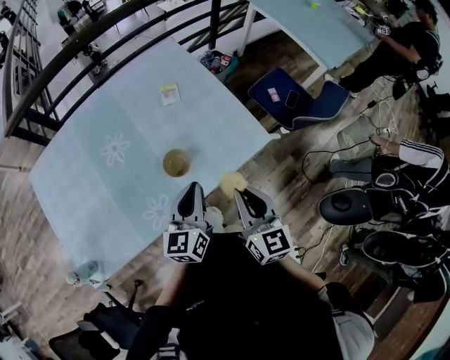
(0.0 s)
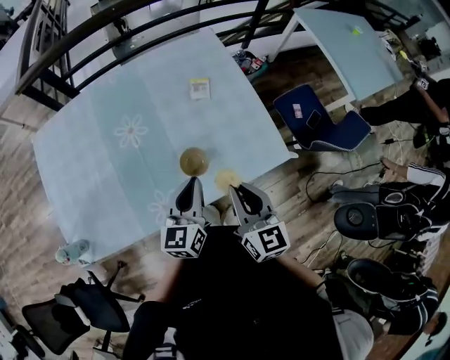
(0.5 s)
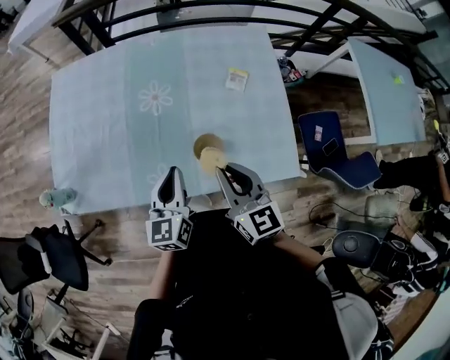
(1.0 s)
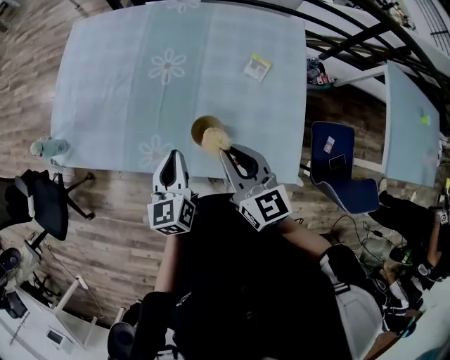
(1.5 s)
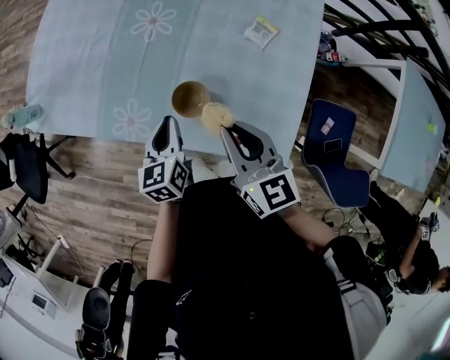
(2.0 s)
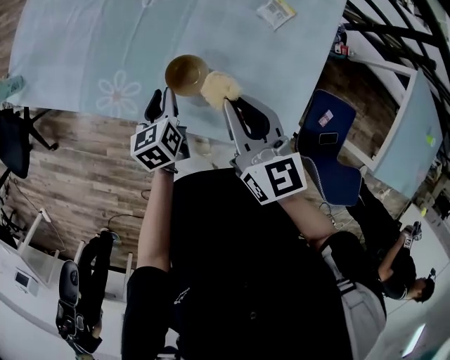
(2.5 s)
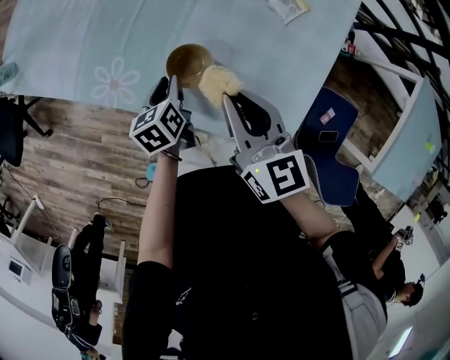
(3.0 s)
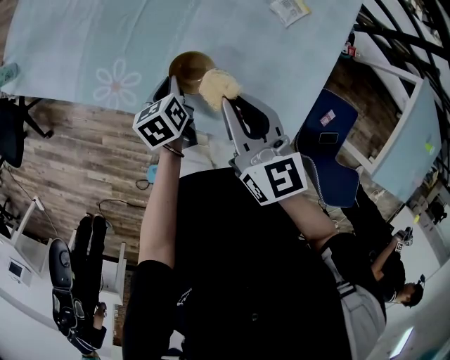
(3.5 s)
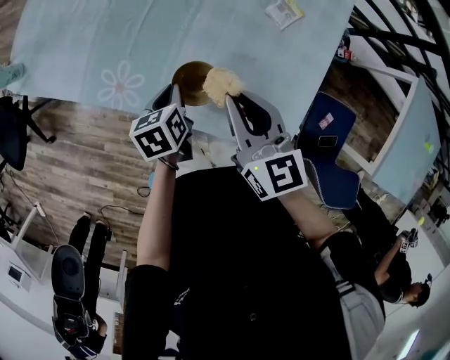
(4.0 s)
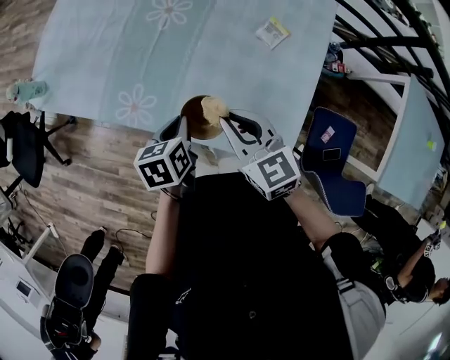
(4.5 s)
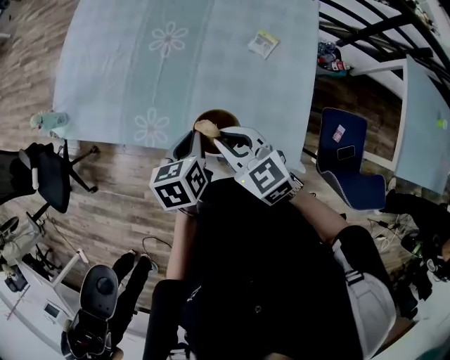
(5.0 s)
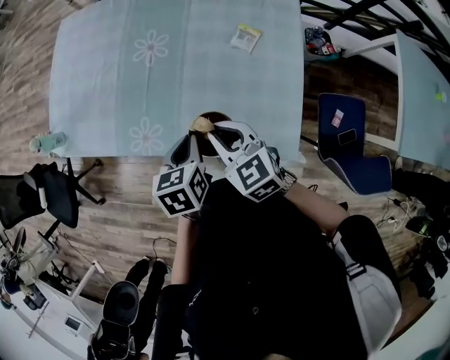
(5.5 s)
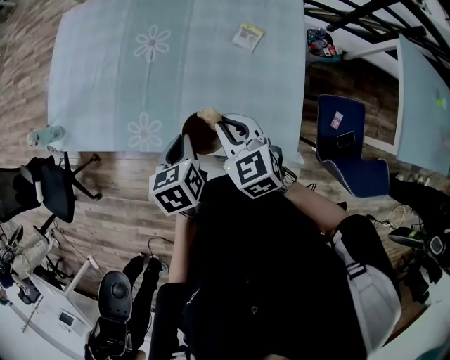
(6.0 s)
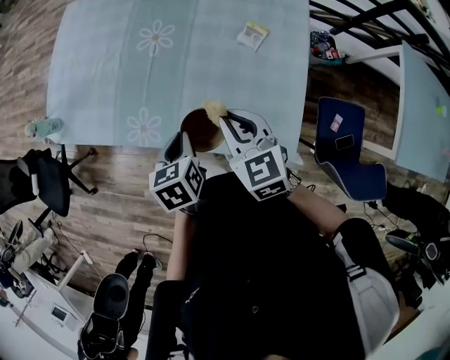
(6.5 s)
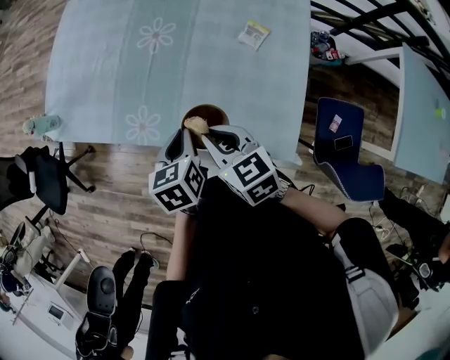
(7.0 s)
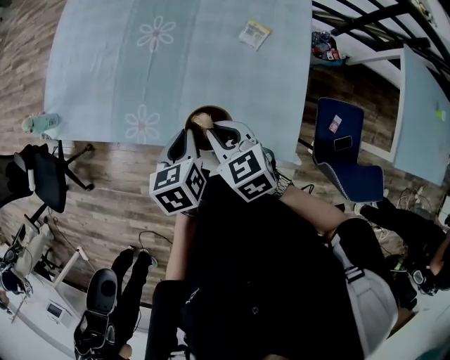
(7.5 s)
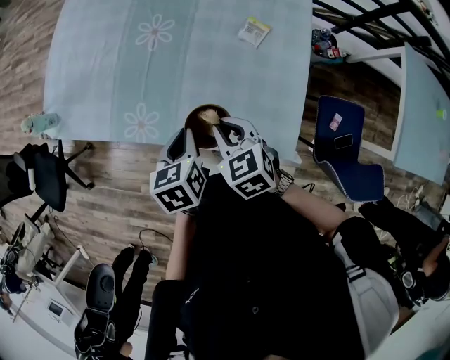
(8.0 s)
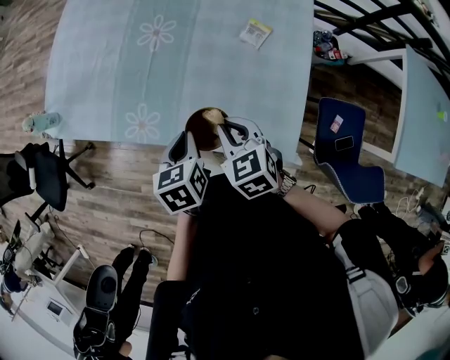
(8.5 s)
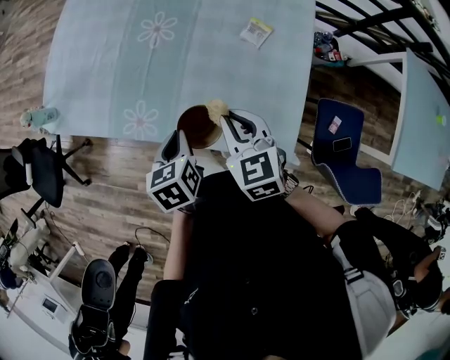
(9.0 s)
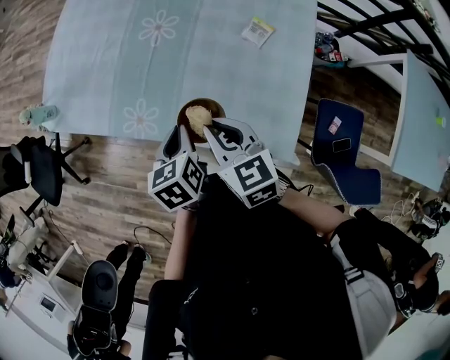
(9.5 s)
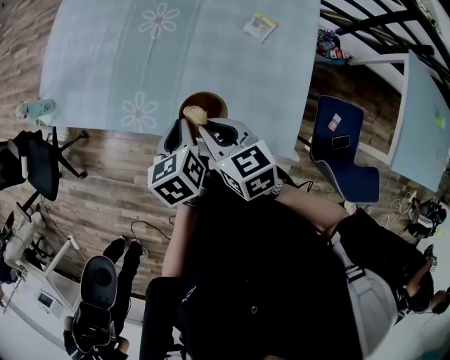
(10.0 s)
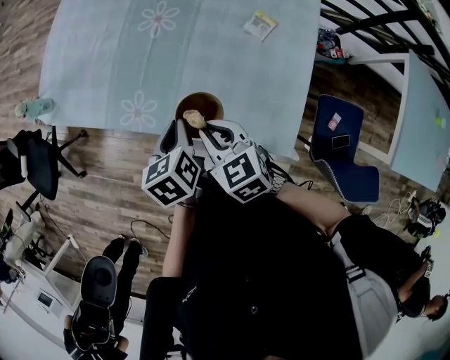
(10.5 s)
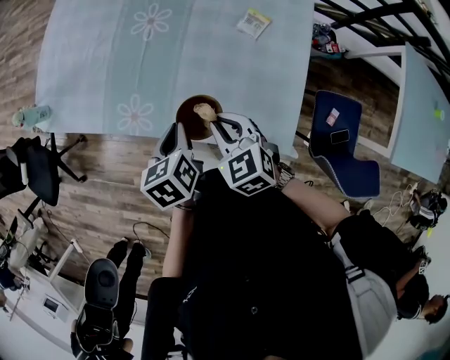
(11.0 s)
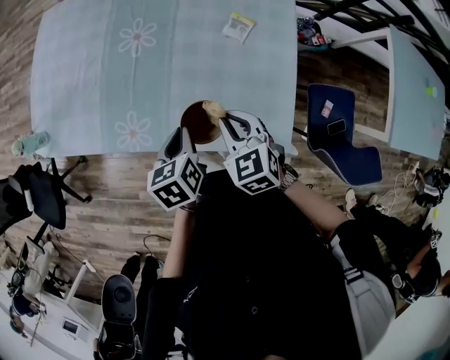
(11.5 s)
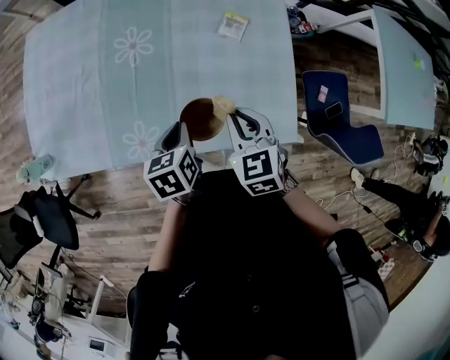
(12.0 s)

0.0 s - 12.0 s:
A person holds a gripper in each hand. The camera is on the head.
0.0 s - 2.0 s: The right gripper shifts by some 20 cm, and rotates some 60 degrees. Meanwhile the left gripper heads downward, covering some 15 cm, and swivels roughly 60 degrees.
2.0 s - 4.0 s: The left gripper travels downward by about 10 cm, and swivels about 20 degrees.
4.0 s - 6.0 s: The left gripper is displaced upward by roughly 15 cm; the right gripper turns by approximately 20 degrees.
6.0 s - 8.0 s: The grippers stay close to where they were, moving slightly.
8.0 s - 10.0 s: The right gripper rotates roughly 20 degrees.
10.0 s - 12.0 s: The left gripper changes place by some 5 cm, and changes its angle by about 30 degrees; the right gripper moves about 5 cm, and turns by approximately 40 degrees.

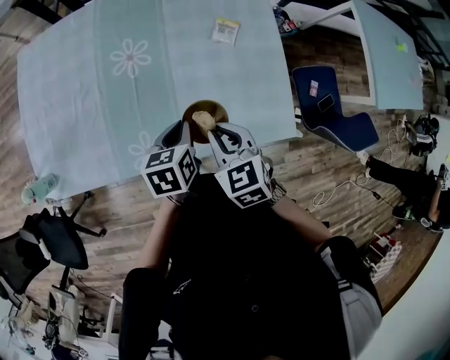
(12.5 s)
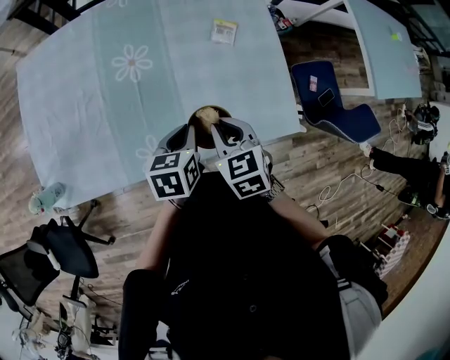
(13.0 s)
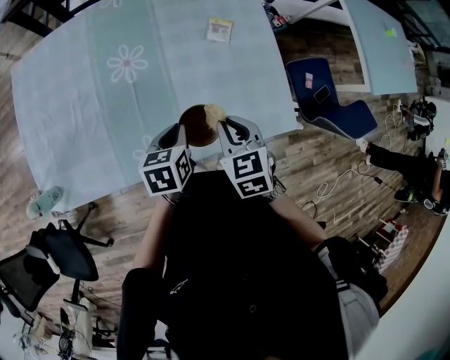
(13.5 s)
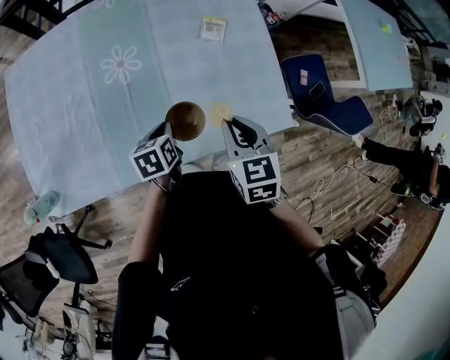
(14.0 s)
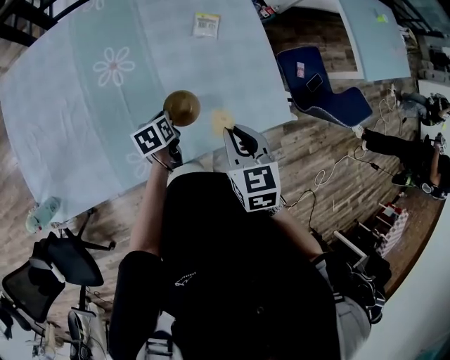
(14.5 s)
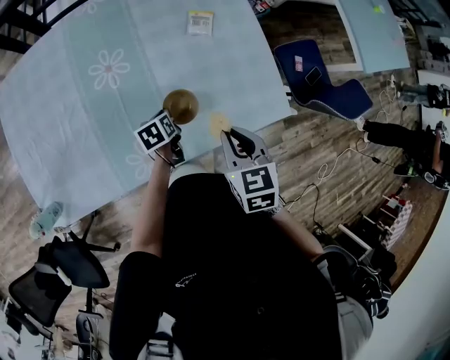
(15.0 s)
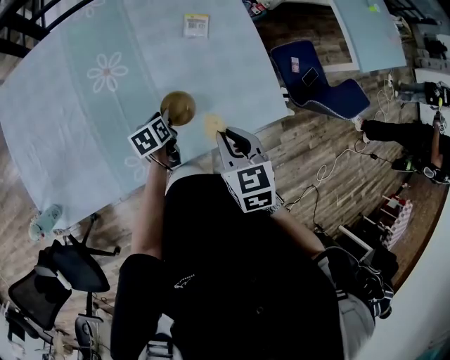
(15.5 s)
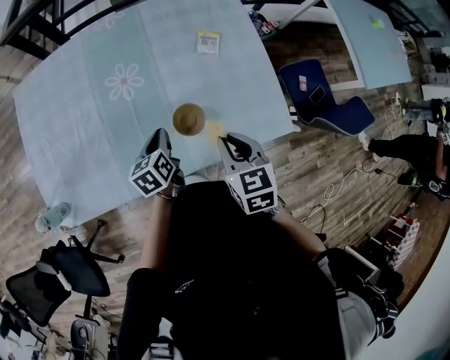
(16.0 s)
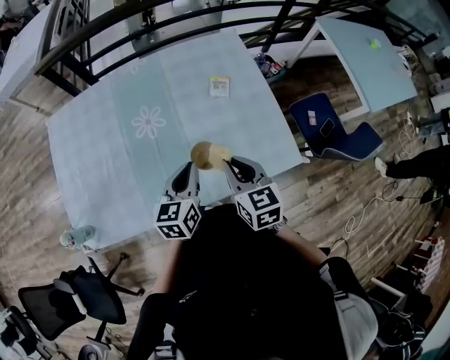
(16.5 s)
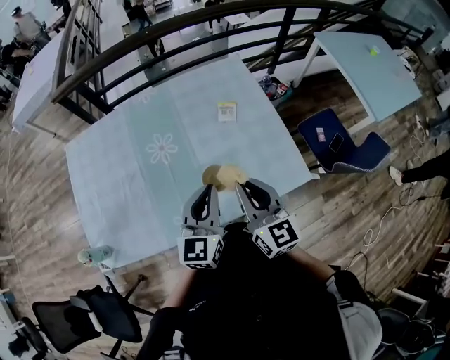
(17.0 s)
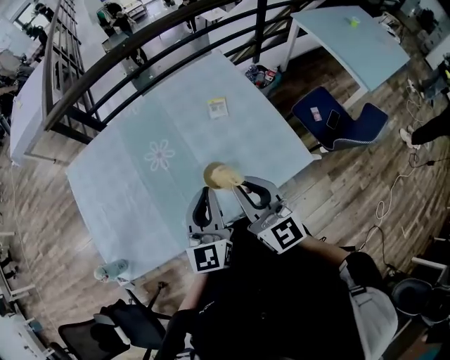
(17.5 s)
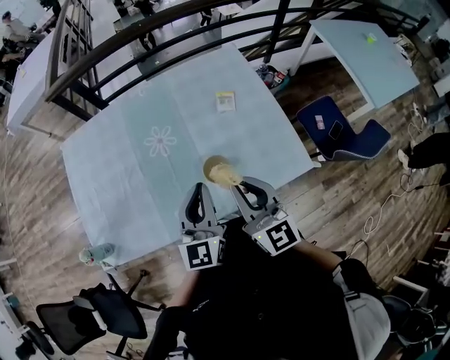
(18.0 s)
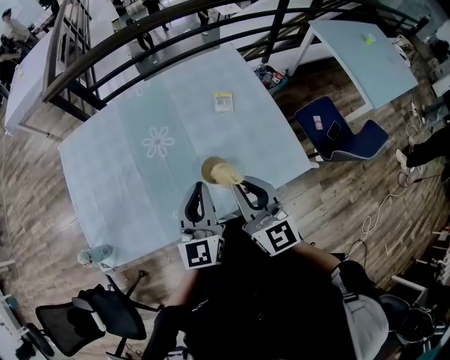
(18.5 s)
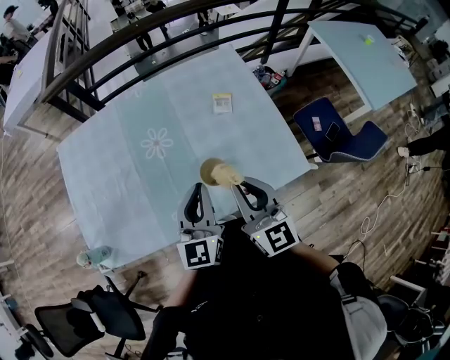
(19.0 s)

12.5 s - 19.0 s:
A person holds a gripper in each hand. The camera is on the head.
12.5 s - 14.5 s: The left gripper travels downward by some 15 cm, while the right gripper turns by about 20 degrees.
14.5 s - 17.0 s: The right gripper heads upward, covering roughly 15 cm, and points its fingers approximately 40 degrees further upward. Meanwhile the left gripper heads upward, covering about 30 cm, points its fingers about 40 degrees further upward, and opens, then closes again.
17.0 s - 19.0 s: The grippers make only small movements.

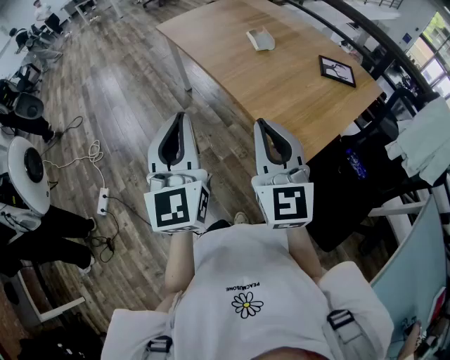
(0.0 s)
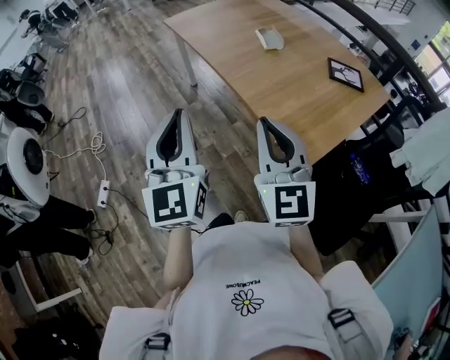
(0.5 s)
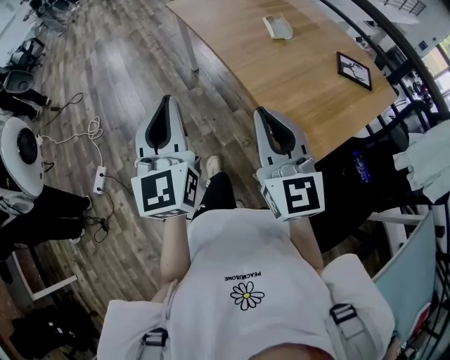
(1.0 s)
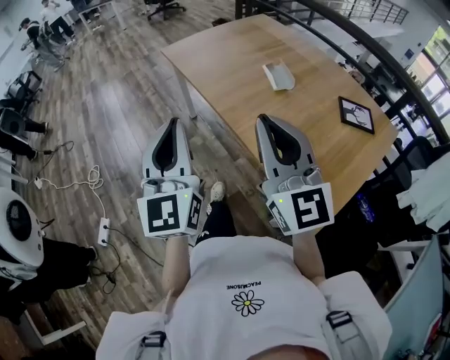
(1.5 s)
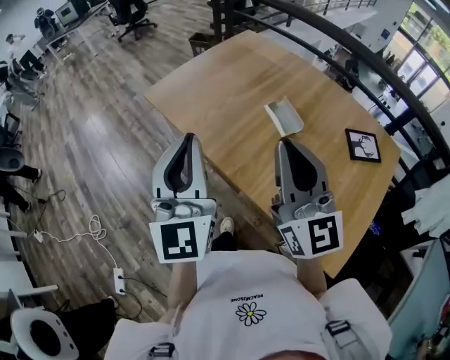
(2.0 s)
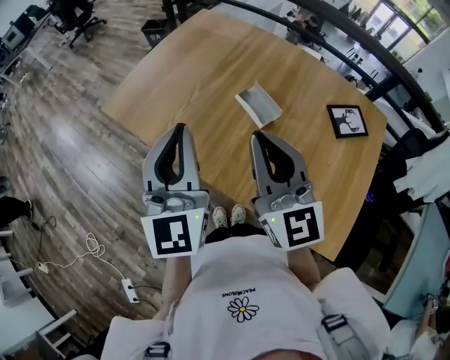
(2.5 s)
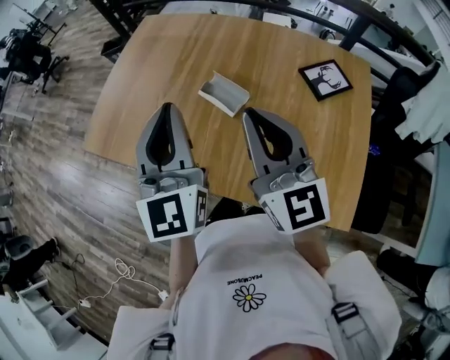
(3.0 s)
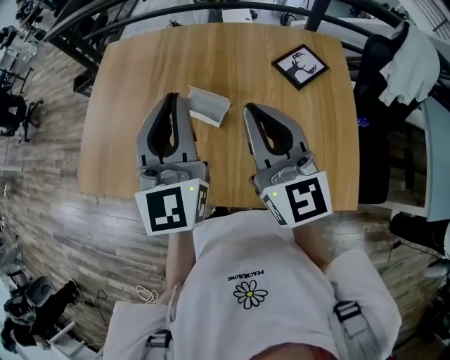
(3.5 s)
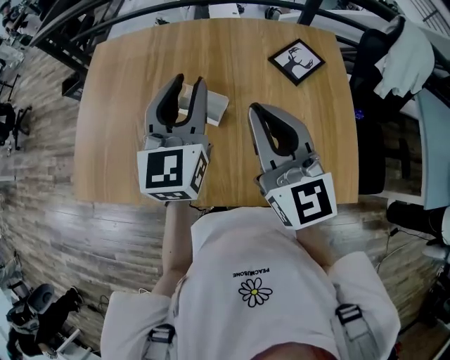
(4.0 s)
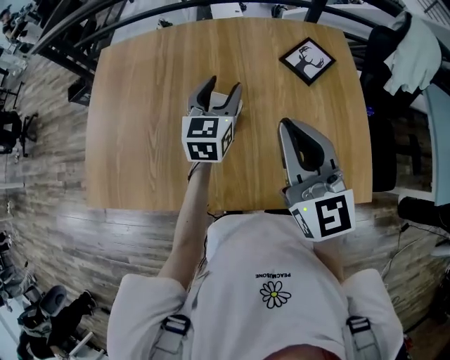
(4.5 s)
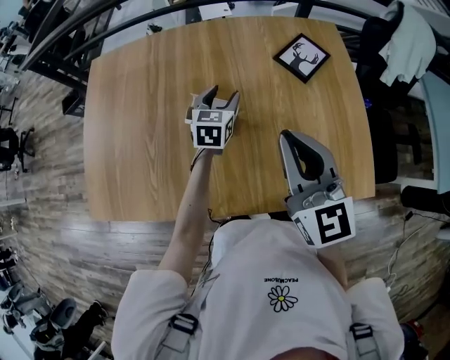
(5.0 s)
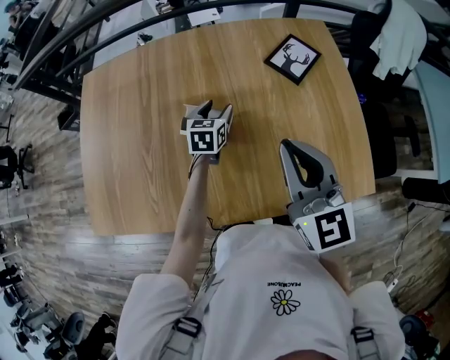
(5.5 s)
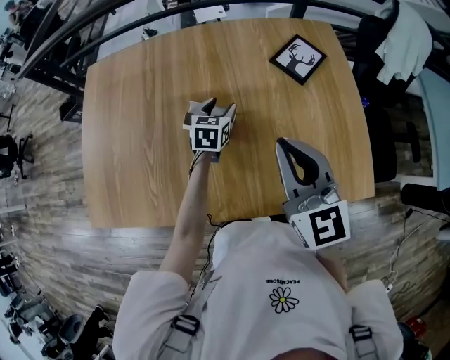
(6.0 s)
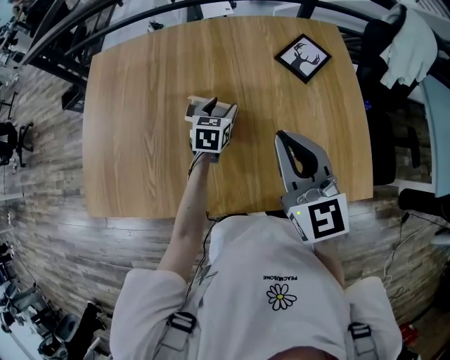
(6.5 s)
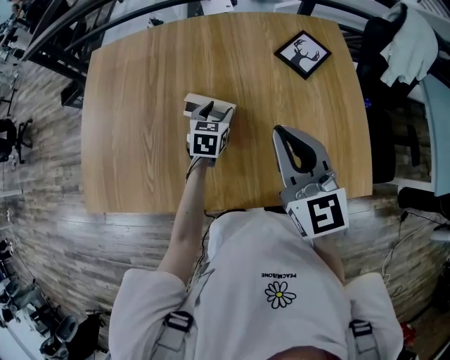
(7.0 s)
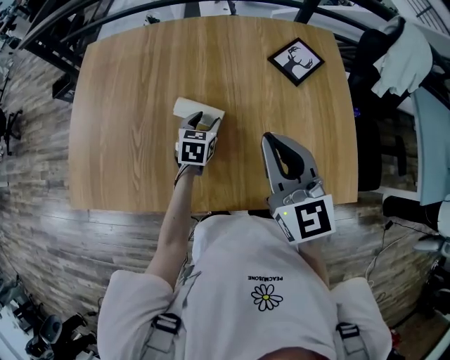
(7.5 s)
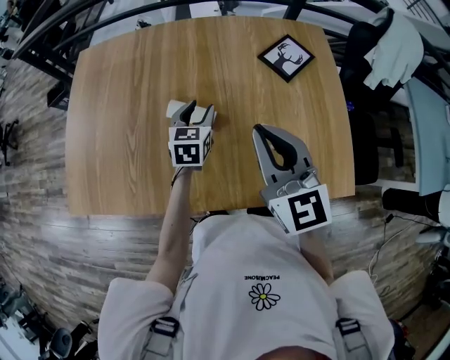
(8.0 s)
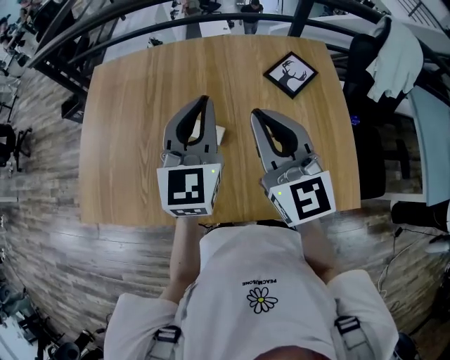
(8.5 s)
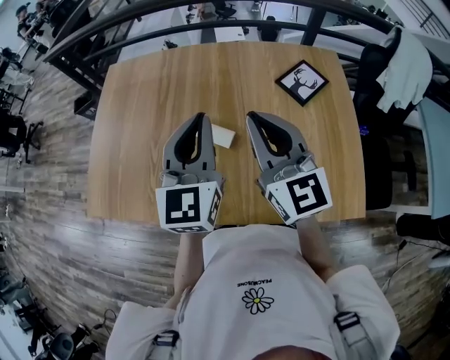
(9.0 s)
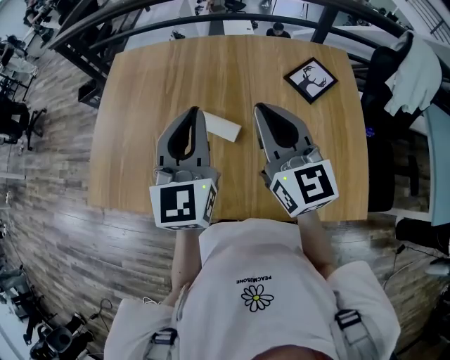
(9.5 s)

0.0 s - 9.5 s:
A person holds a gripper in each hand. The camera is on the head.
0.0 s - 2.0 s: Both grippers move forward, approximately 40 cm.
2.0 s - 4.0 s: The right gripper ends up about 20 cm from where it was, and turns by approximately 40 degrees. The left gripper changes place by roughly 35 cm, changes its angle by approximately 50 degrees, and opens up.
4.0 s - 5.5 s: The left gripper goes approximately 30 cm downward, tilts its fingers some 30 degrees downward, and opens up; the right gripper heads downward, covering approximately 5 cm.
5.5 s - 7.5 s: The left gripper is displaced backward by approximately 10 cm.
7.5 s - 9.5 s: The right gripper is displaced forward by approximately 5 cm; the left gripper travels upward by roughly 30 cm, points its fingers approximately 40 degrees further upward, and closes its fingers.
